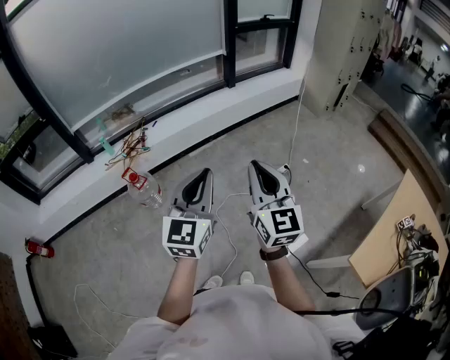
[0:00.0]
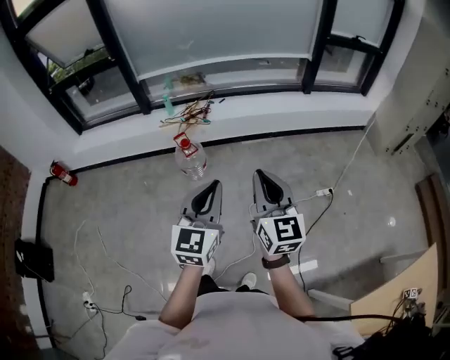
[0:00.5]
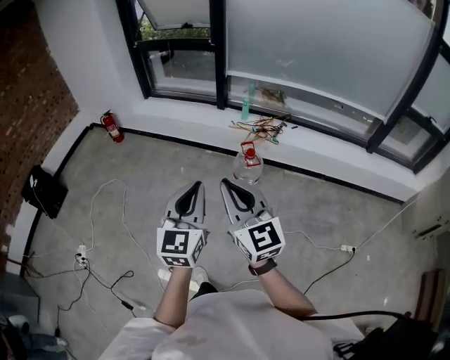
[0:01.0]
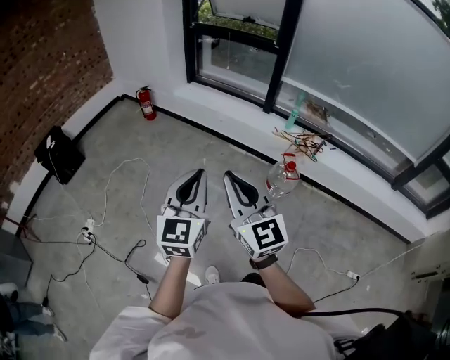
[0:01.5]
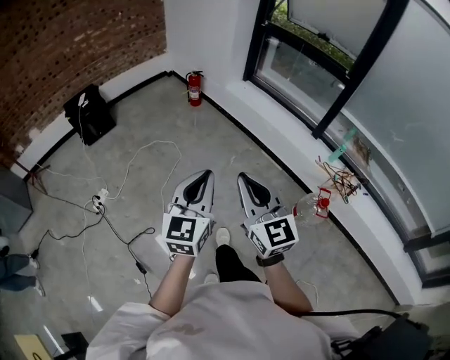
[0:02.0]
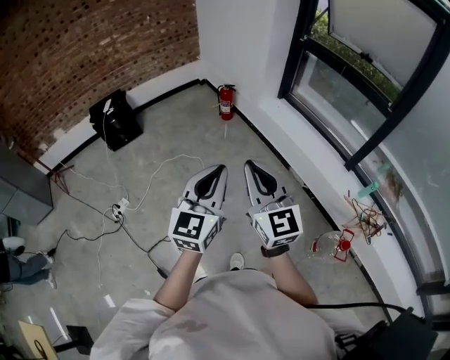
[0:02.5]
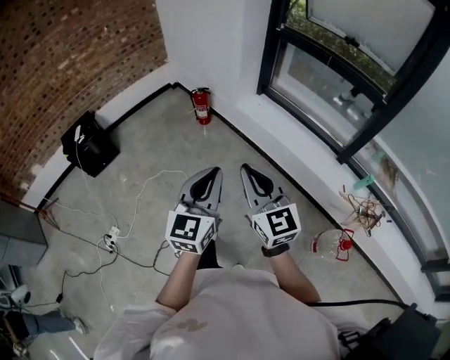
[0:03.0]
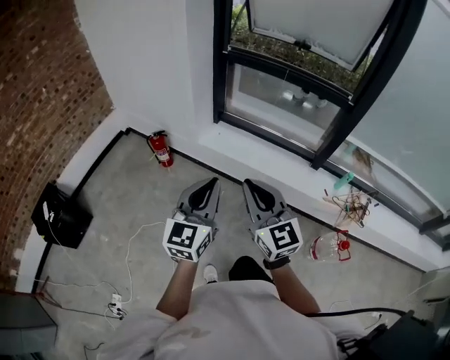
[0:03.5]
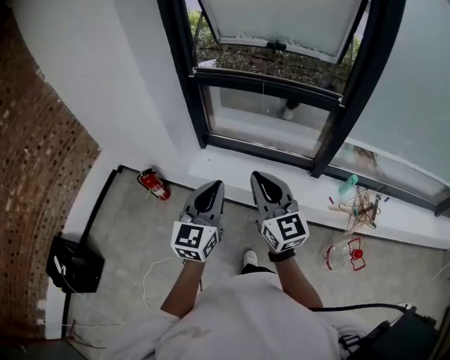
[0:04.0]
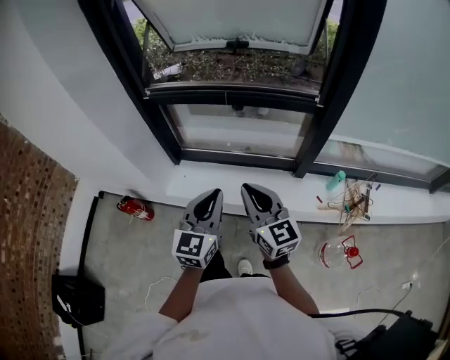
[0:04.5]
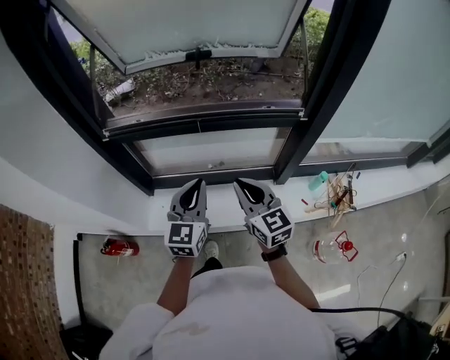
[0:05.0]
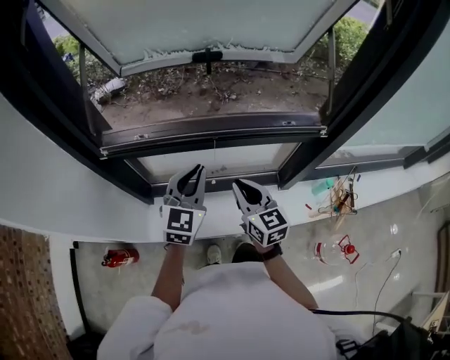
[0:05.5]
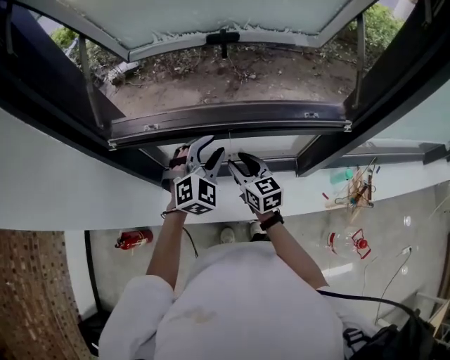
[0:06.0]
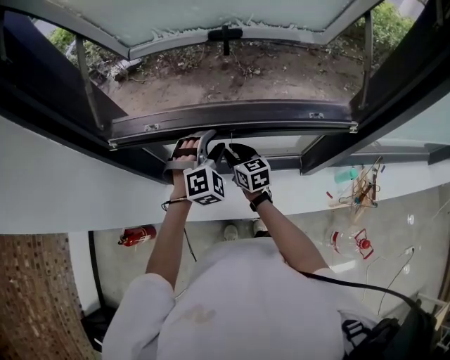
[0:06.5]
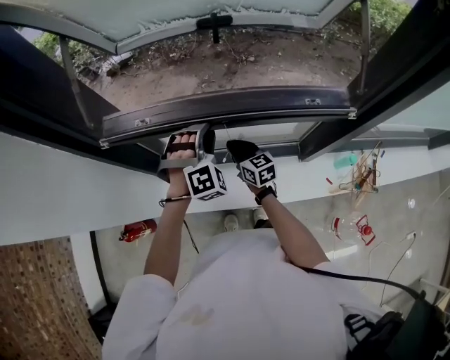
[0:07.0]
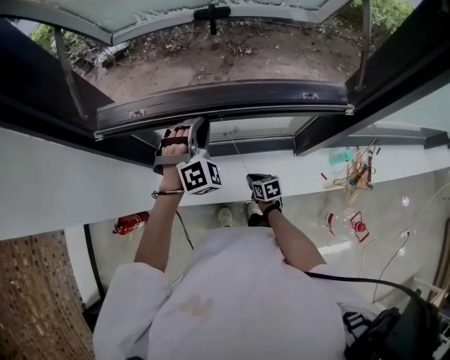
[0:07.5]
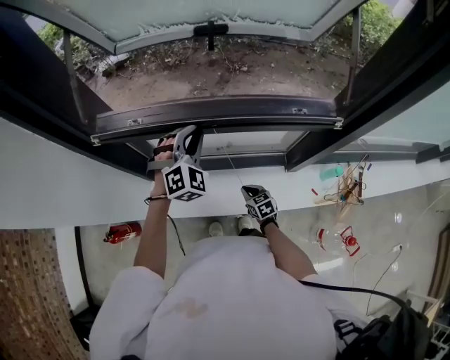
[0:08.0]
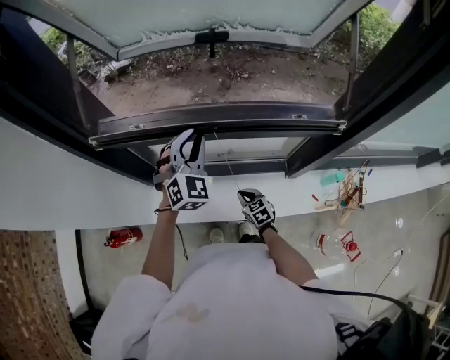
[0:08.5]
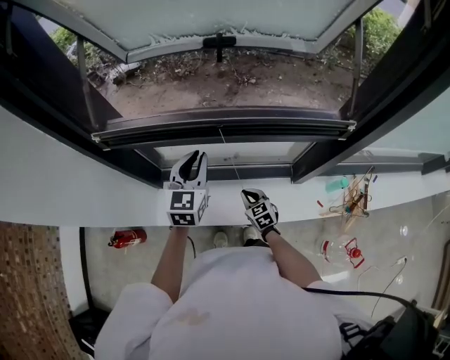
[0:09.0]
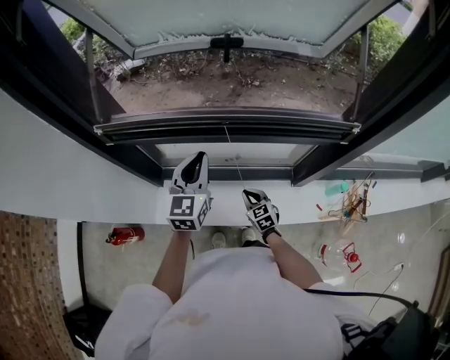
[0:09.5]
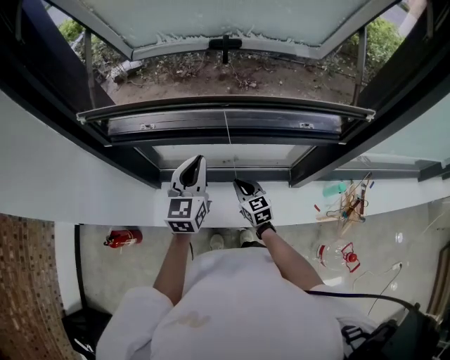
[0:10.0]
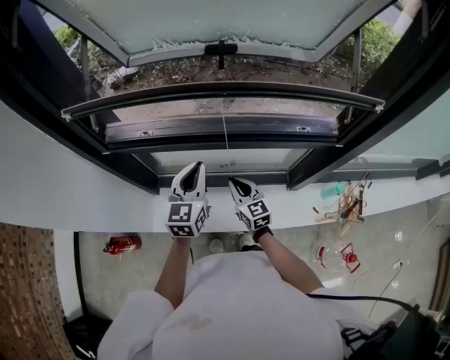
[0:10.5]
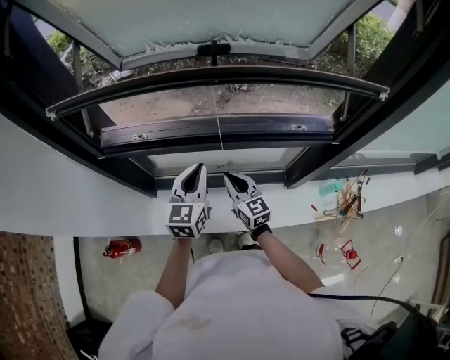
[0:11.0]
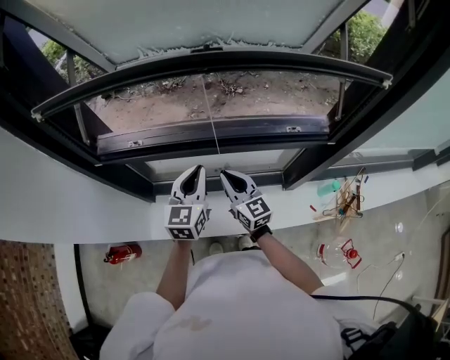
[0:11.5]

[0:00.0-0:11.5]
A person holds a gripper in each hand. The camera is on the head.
0:00.0 to 0:02.0: The two grippers travel together, roughly 90 cm. The right gripper swivels approximately 90 degrees. The left gripper changes its angle by some 80 degrees.
0:02.0 to 0:04.0: Both grippers are carried roughly 80 cm. The left gripper swivels about 30 degrees, while the right gripper rotates roughly 30 degrees.
0:04.0 to 0:06.0: Both grippers are carried forward, about 60 cm. The right gripper rotates about 30 degrees, and opens. The left gripper twists some 50 degrees clockwise, seen from behind, and opens up.
0:06.0 to 0:07.5: The right gripper is displaced downward by some 25 cm, angles its fingers downward, by about 30 degrees, and closes its fingers, while the left gripper swivels roughly 20 degrees, and closes up.
0:07.5 to 0:09.5: The right gripper travels upward by roughly 5 cm, and swivels roughly 30 degrees. Meanwhile the left gripper is displaced backward by approximately 5 cm, and rotates around the line of its fingers by some 70 degrees, counterclockwise from behind.
0:09.5 to 0:11.5: The right gripper heads upward, covering about 20 cm, and tips its fingers upward by roughly 30 degrees.

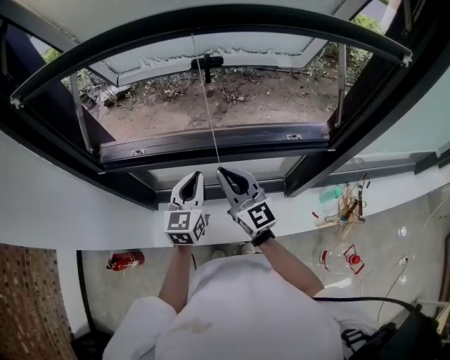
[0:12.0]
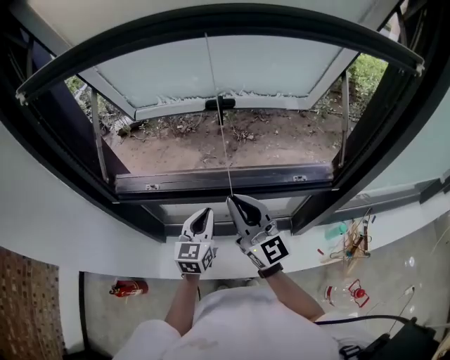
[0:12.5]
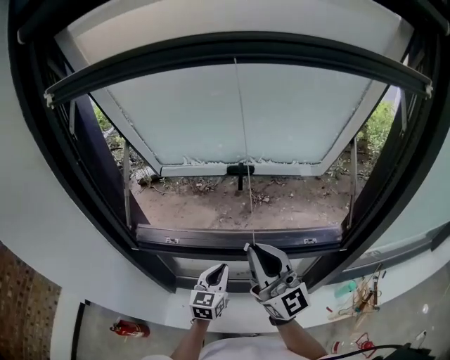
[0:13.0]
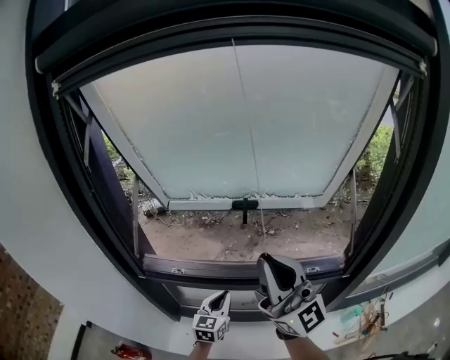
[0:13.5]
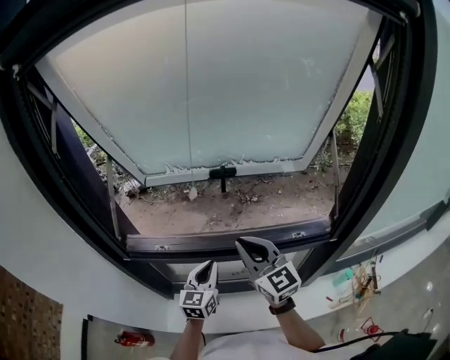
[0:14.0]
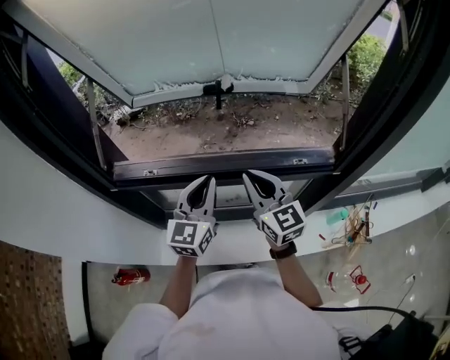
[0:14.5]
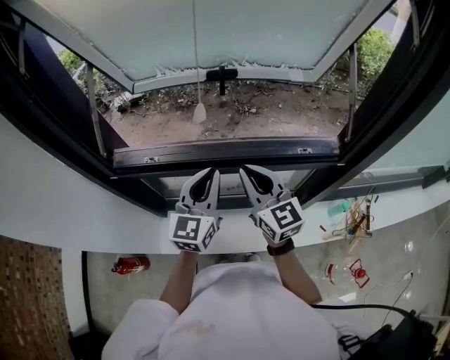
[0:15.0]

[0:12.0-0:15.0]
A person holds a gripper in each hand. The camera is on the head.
0:12.0 to 0:13.5: The right gripper goes about 30 cm upward, and tips its fingers upward by approximately 30 degrees.
0:13.5 to 0:15.0: The left gripper is displaced upward by approximately 10 cm; the right gripper is displaced downward by some 25 cm, and tilts its fingers approximately 40 degrees downward.

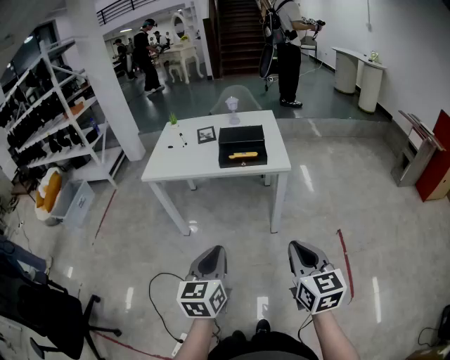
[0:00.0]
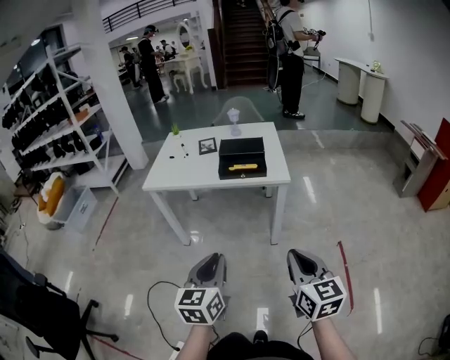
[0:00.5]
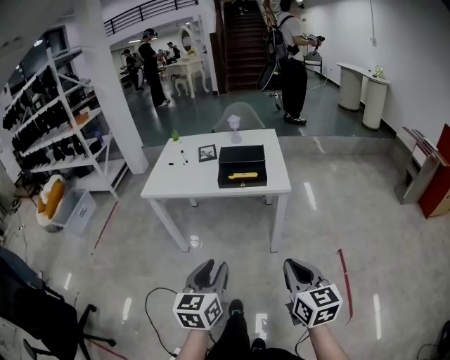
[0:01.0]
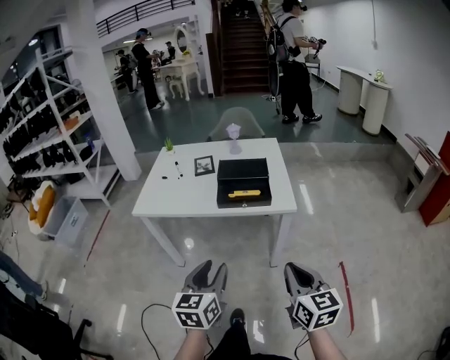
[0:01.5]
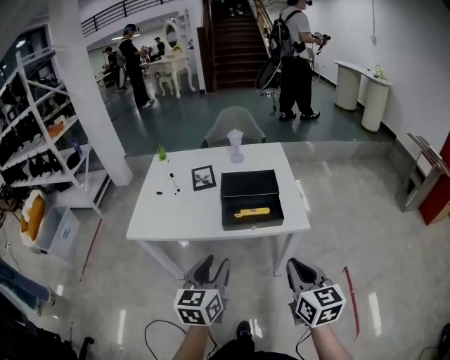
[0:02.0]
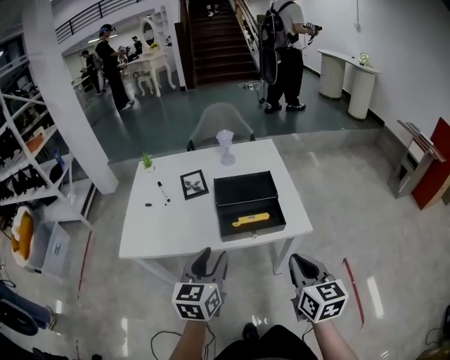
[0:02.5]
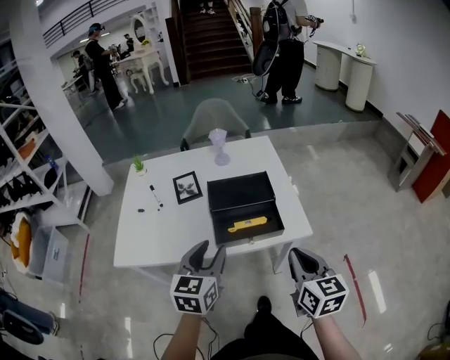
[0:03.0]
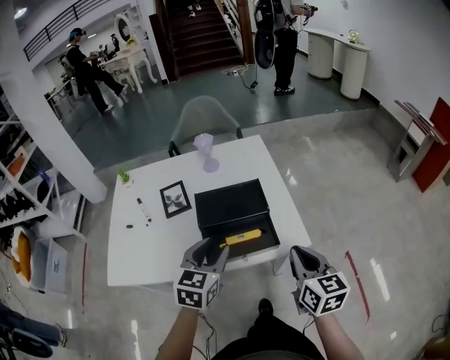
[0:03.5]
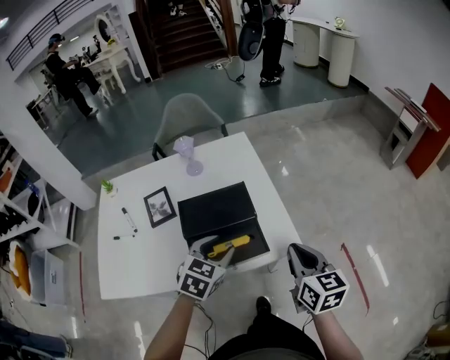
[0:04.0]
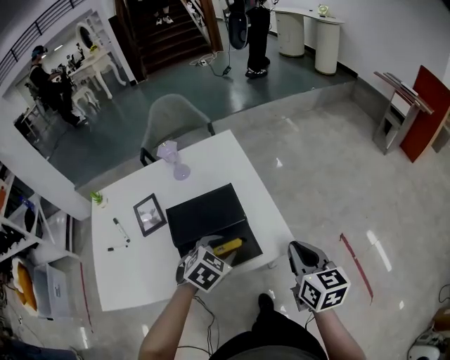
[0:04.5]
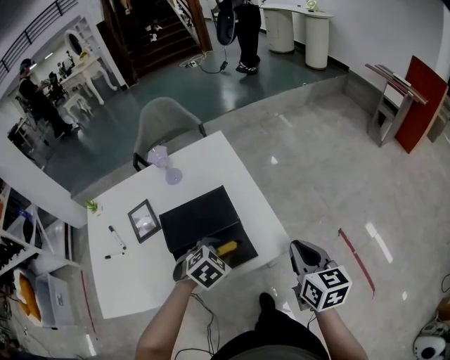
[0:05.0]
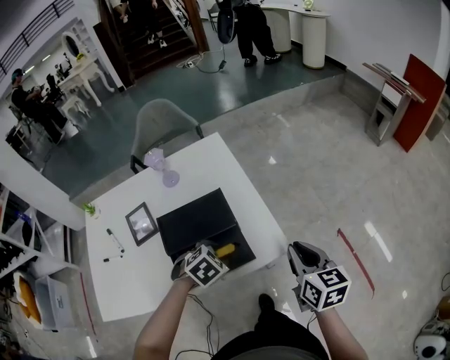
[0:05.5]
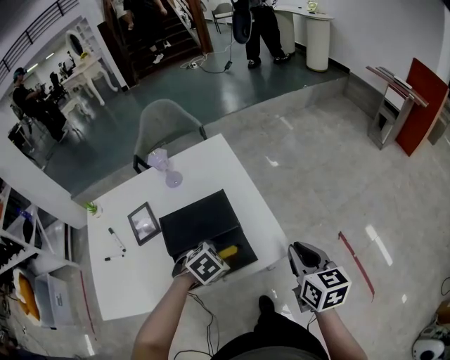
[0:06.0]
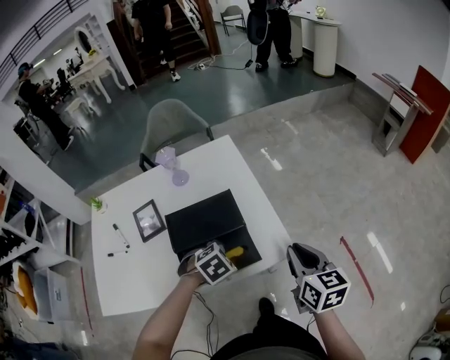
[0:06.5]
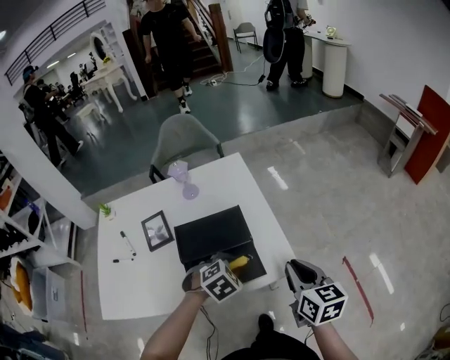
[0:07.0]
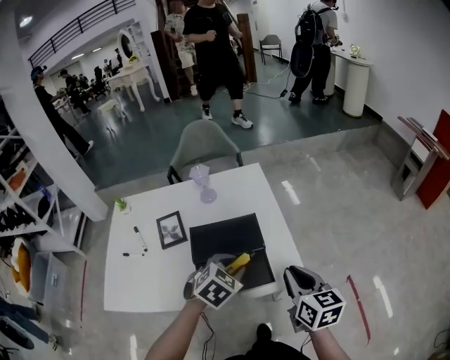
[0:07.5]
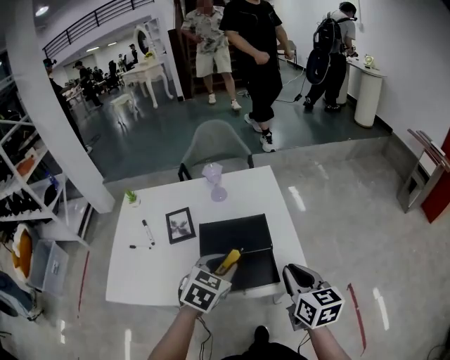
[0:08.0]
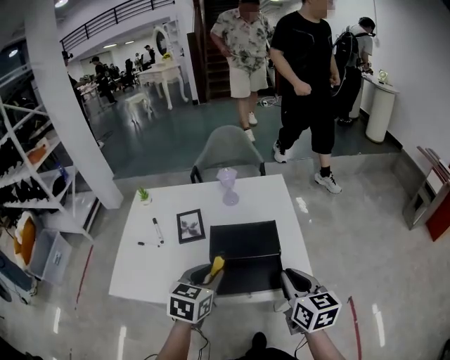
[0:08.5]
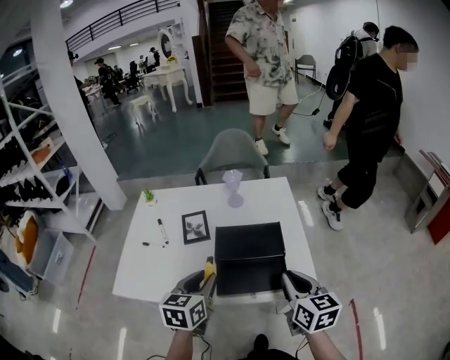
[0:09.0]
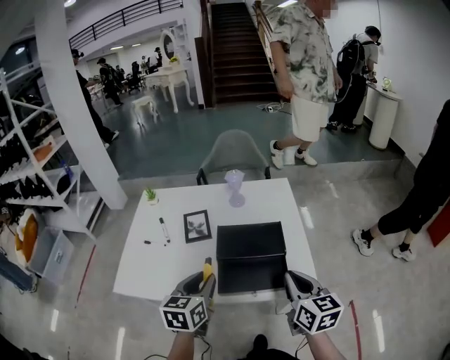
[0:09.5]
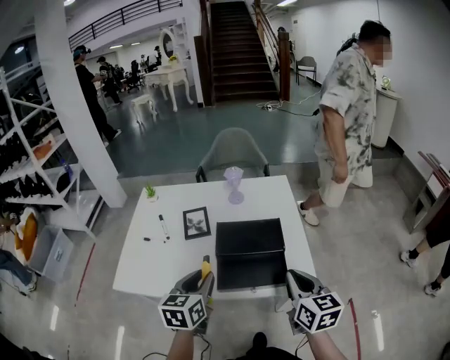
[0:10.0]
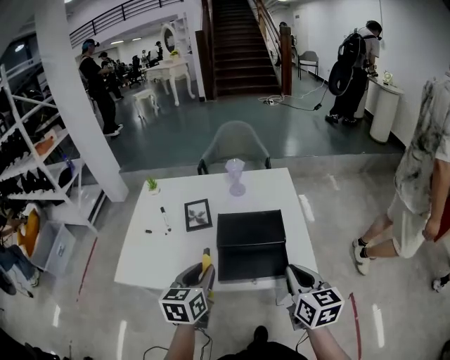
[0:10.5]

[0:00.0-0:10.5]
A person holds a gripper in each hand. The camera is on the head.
0:00.0 to 0:02.0: The two grippers go about 30 cm forward. The left gripper opens up.
0:02.0 to 0:04.0: Both grippers travel together forward, approximately 25 cm. The left gripper changes its angle by some 40 degrees.
0:04.0 to 0:06.5: The left gripper is displaced downward by some 10 cm, and points its fingers approximately 30 degrees further downward.
0:06.5 to 0:08.5: The left gripper shifts some 15 cm upward, and points its fingers about 40 degrees further upward. The right gripper ends up some 10 cm from where it was.
0:08.5 to 0:10.5: The left gripper moves to the left, about 5 cm.

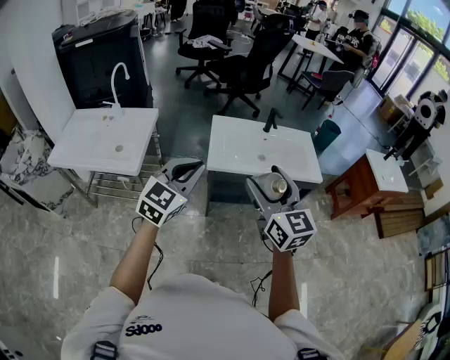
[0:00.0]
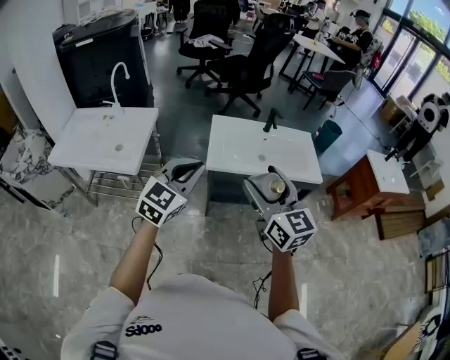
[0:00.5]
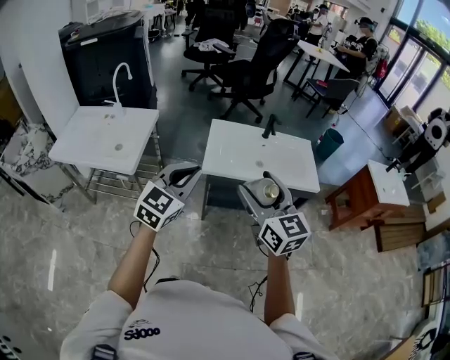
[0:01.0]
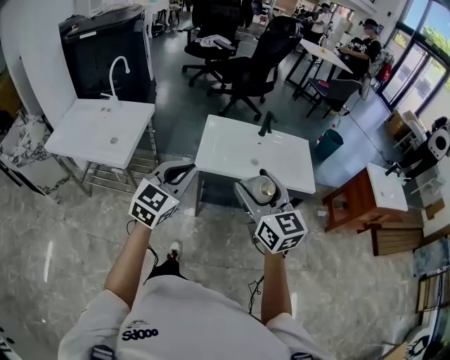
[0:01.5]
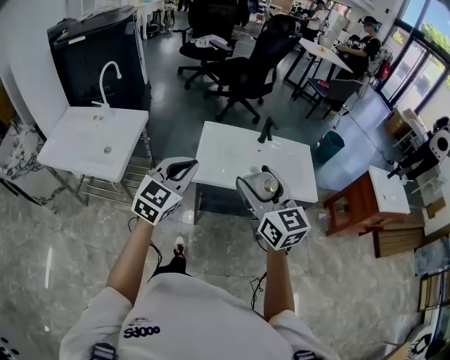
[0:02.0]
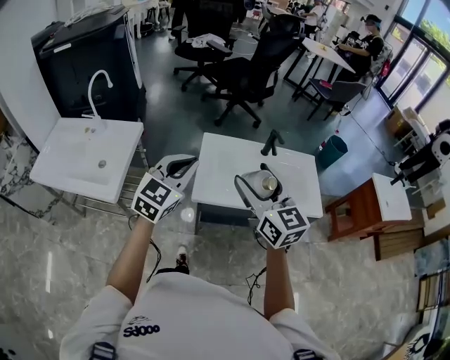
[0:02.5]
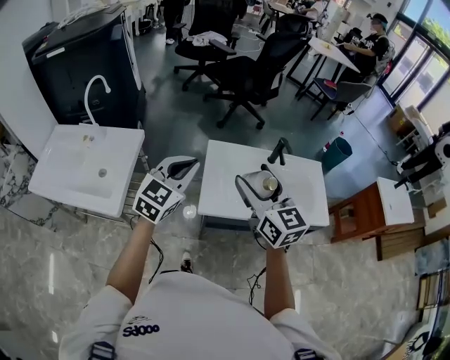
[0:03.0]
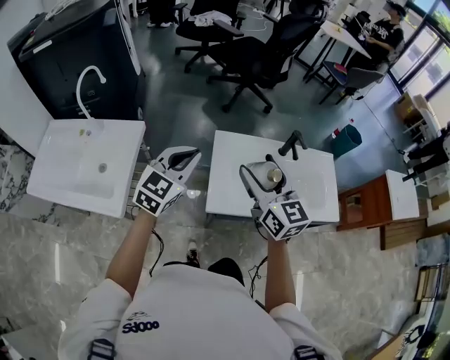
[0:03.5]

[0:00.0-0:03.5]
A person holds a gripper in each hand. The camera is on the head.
0:00.0 to 0:02.0: Both grippers move forward, about 10 cm.
0:02.0 to 0:03.5: Both grippers move forward, some 20 cm.
